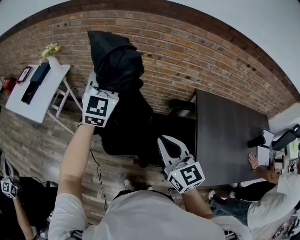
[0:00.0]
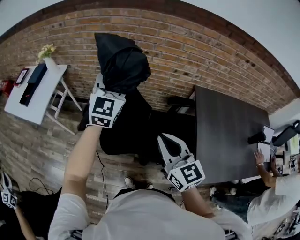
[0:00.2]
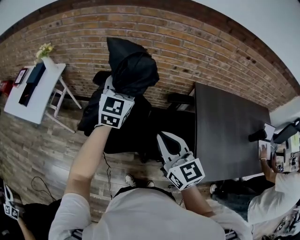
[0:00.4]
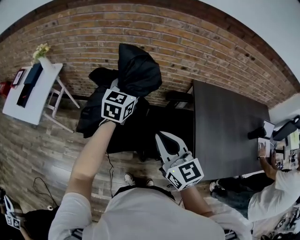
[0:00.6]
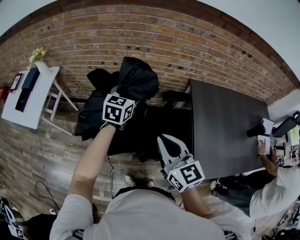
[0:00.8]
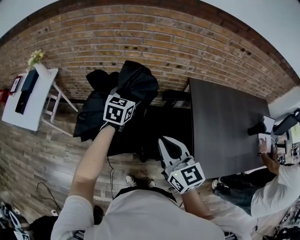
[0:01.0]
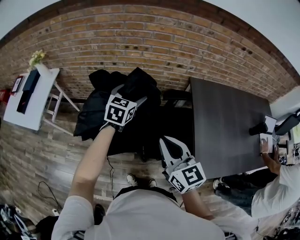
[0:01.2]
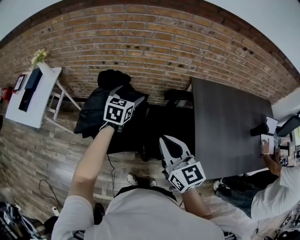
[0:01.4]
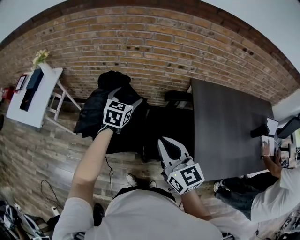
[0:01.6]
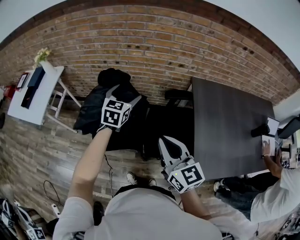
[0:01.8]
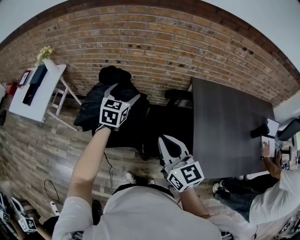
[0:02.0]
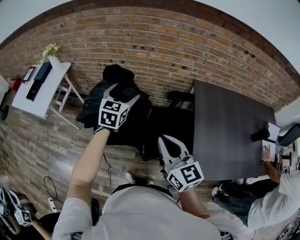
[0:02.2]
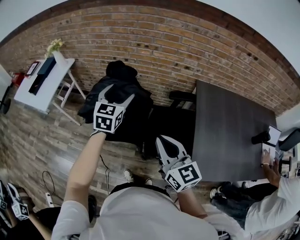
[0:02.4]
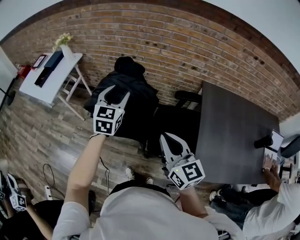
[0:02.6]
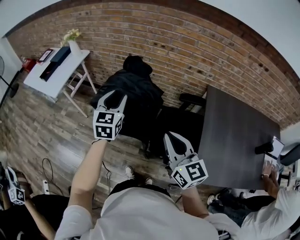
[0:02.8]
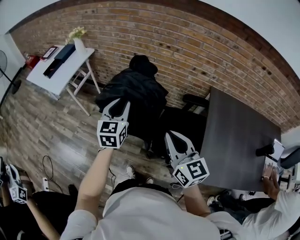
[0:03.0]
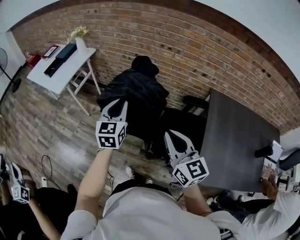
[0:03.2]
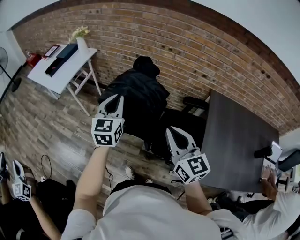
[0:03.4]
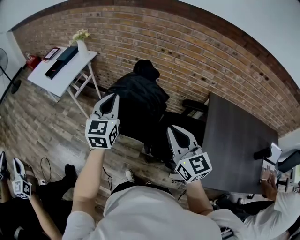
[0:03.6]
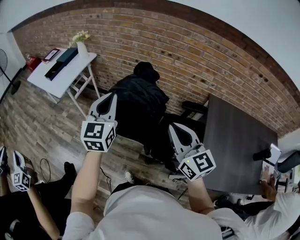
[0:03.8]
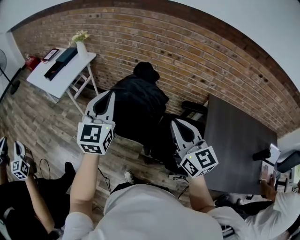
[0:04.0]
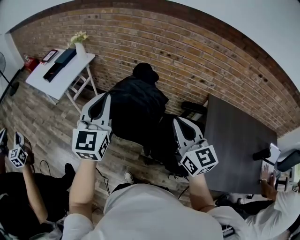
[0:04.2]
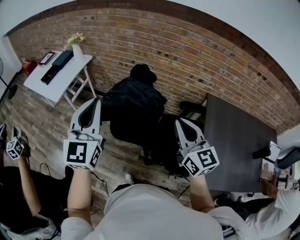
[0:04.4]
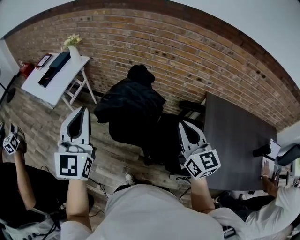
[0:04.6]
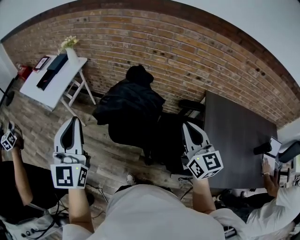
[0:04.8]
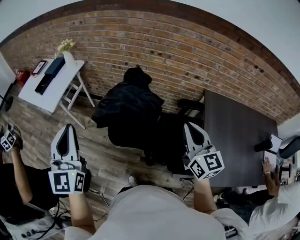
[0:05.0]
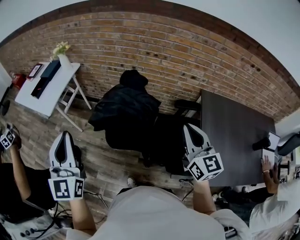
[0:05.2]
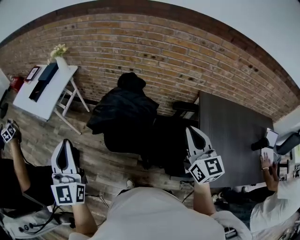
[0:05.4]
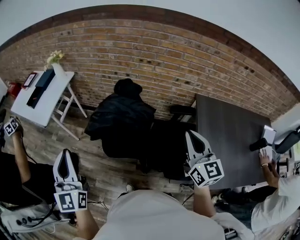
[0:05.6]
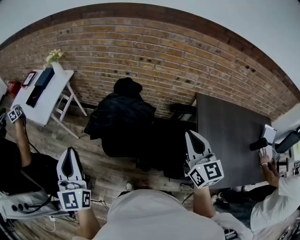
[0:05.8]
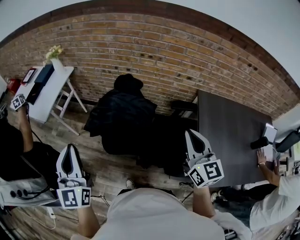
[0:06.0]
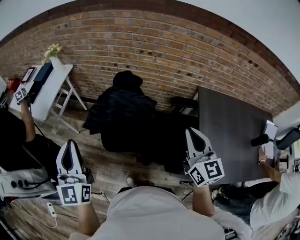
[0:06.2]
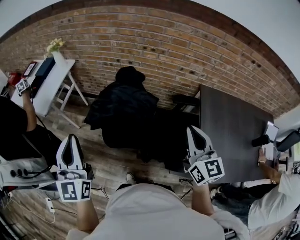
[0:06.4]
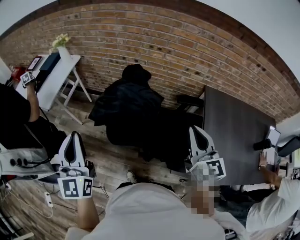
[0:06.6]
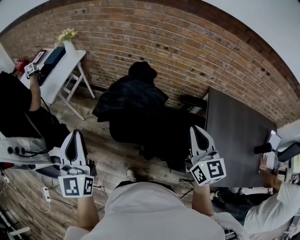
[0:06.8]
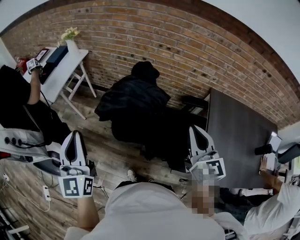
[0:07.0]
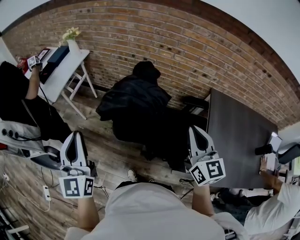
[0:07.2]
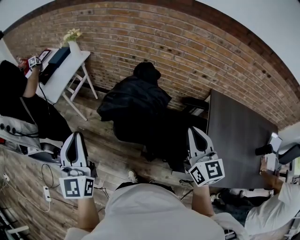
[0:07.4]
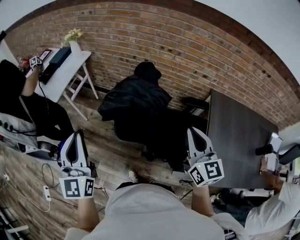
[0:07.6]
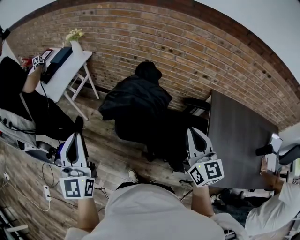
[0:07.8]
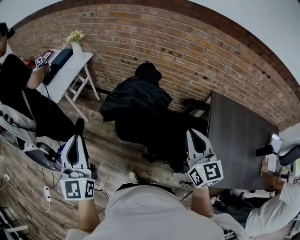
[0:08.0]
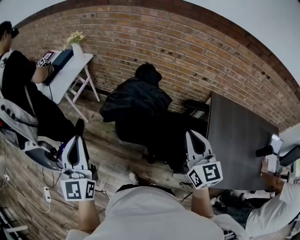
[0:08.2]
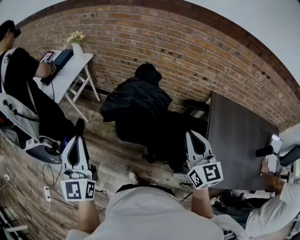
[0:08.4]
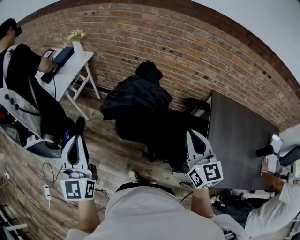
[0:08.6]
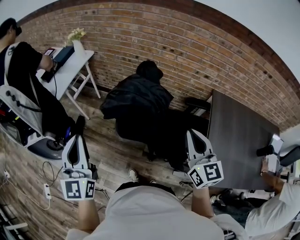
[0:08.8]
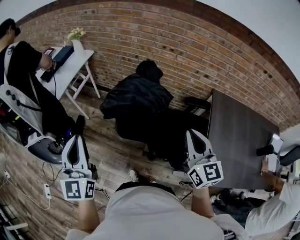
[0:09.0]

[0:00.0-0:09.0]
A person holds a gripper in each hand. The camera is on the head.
0:00.0 to 0:01.6: The right gripper goes approximately 5 cm to the right. The left gripper heads downward and to the right, covering approximately 25 cm, tilts its fingers about 30 degrees downward, and opens its fingers.
0:01.6 to 0:03.0: The right gripper goes approximately 5 cm backward; the left gripper travels backward and to the left by about 20 cm, swivels approximately 30 degrees, and closes its fingers.
0:03.0 to 0:04.4: The right gripper is displaced upward and forward by some 10 cm, while the left gripper travels upward and to the left by about 20 cm, and changes its angle by approximately 20 degrees.
0:04.4 to 0:06.0: The left gripper heads to the left and downward, covering roughly 10 cm; the right gripper moves to the right, some 5 cm.
0:06.0 to 0:07.6: The right gripper shifts some 5 cm to the left.
0:07.6 to 0:09.0: The grippers make only small movements.

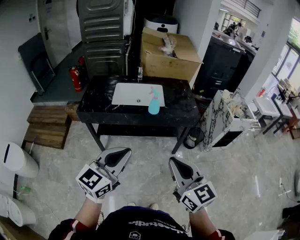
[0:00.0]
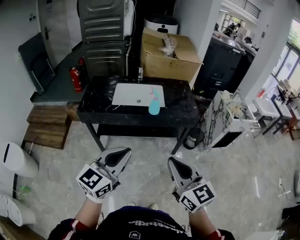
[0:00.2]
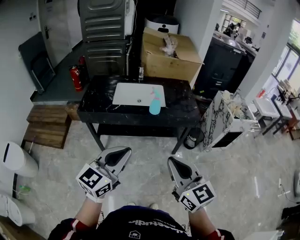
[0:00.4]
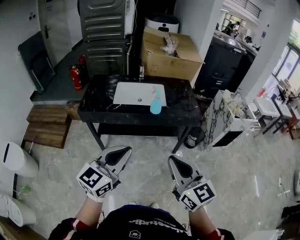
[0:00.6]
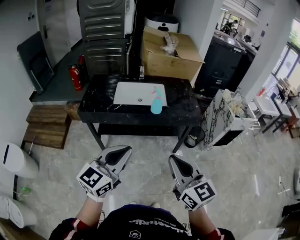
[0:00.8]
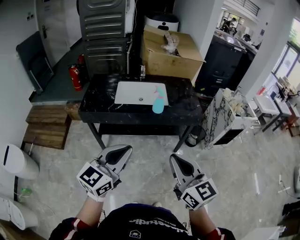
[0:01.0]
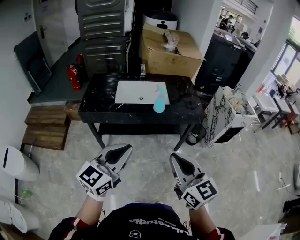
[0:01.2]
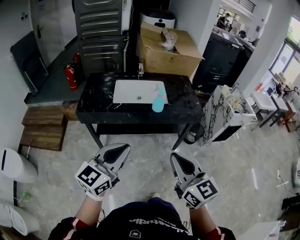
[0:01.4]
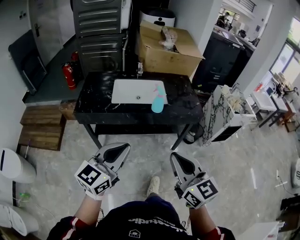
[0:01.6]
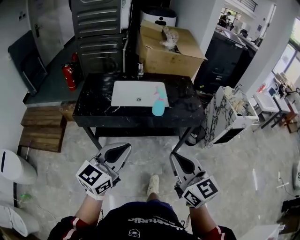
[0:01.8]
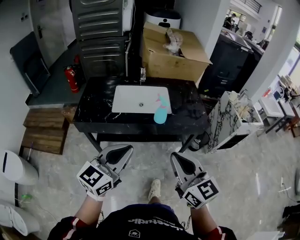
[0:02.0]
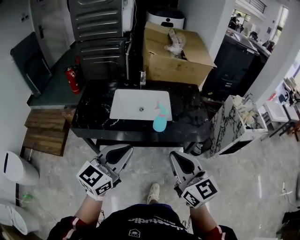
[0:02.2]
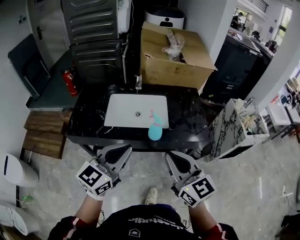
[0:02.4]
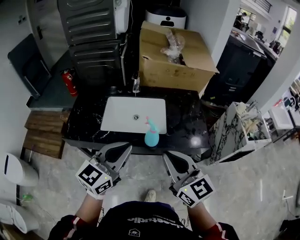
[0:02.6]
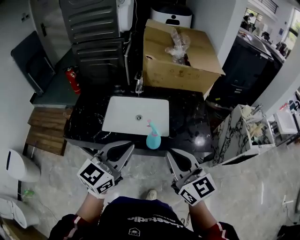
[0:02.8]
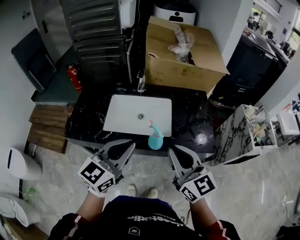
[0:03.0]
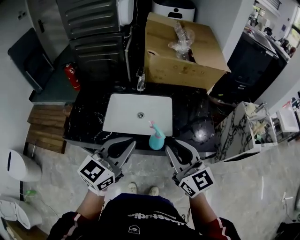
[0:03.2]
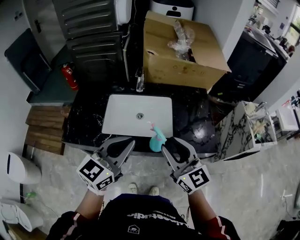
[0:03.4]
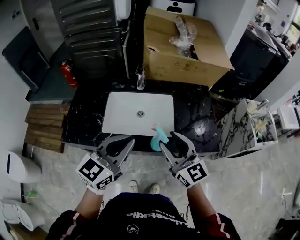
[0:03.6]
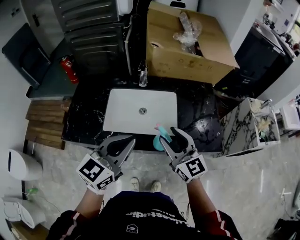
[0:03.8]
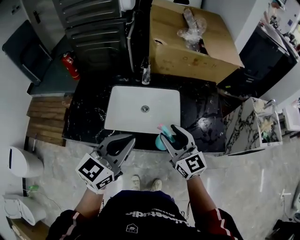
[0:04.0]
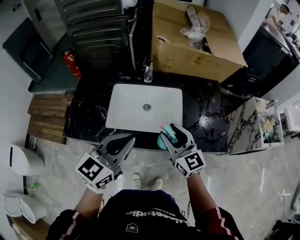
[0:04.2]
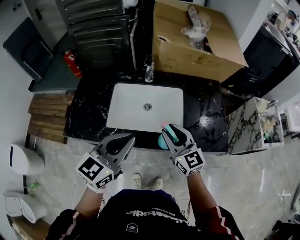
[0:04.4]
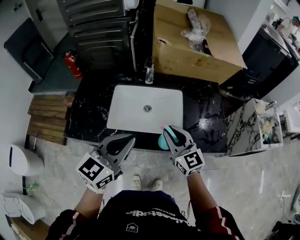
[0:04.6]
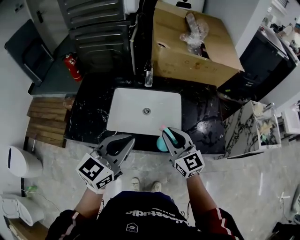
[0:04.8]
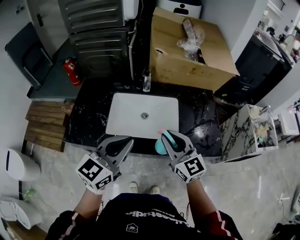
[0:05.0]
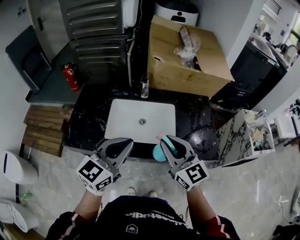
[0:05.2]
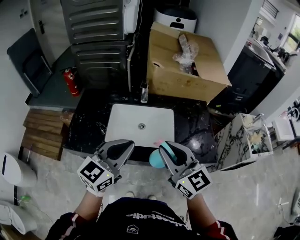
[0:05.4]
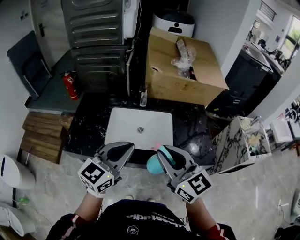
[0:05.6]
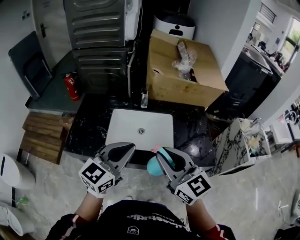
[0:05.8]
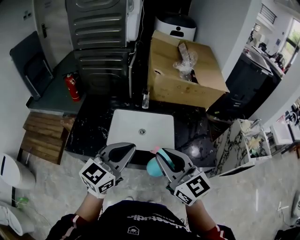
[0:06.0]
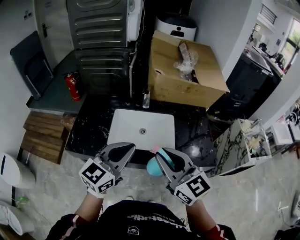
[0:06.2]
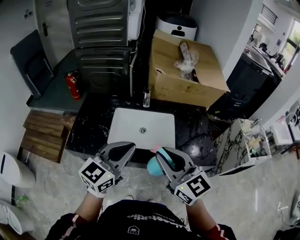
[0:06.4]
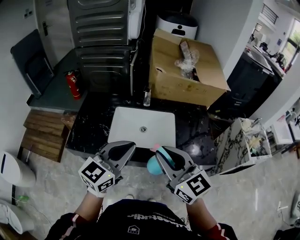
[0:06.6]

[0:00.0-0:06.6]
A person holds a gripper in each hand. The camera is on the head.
0:00.0 to 0:01.6: The left gripper moves to the left and forward, some 10 cm. The right gripper heads to the left, covering about 5 cm.
0:01.6 to 0:03.2: The grippers both shift forward by roughly 35 cm.
0:03.2 to 0:05.0: The left gripper is displaced to the left by approximately 5 cm. Meanwhile the right gripper moves forward, to the left and downward, approximately 10 cm, and opens, then closes again.
0:05.0 to 0:06.6: The right gripper moves upward and backward, approximately 15 cm.

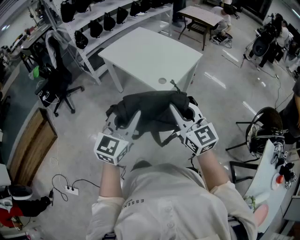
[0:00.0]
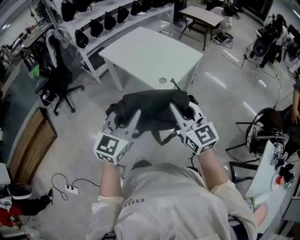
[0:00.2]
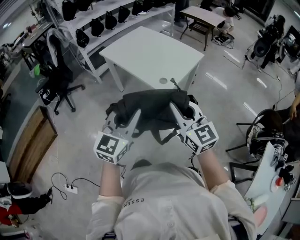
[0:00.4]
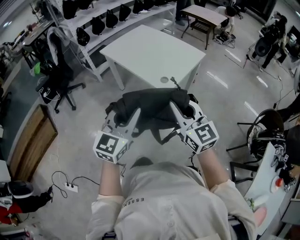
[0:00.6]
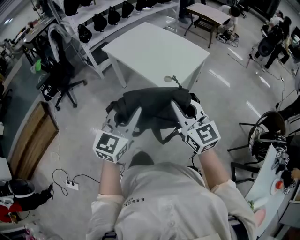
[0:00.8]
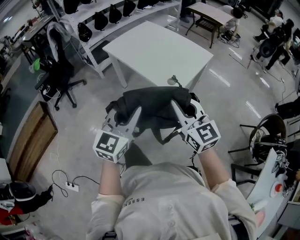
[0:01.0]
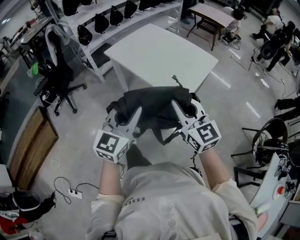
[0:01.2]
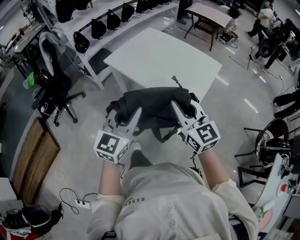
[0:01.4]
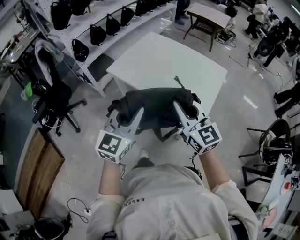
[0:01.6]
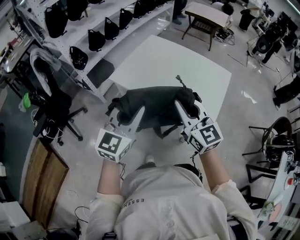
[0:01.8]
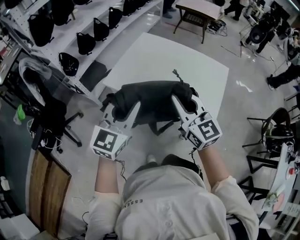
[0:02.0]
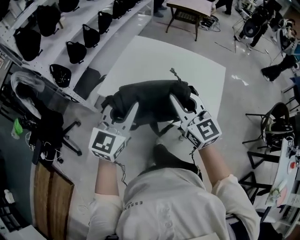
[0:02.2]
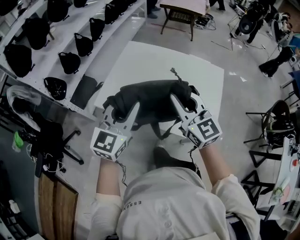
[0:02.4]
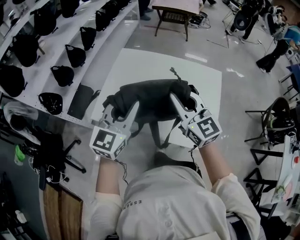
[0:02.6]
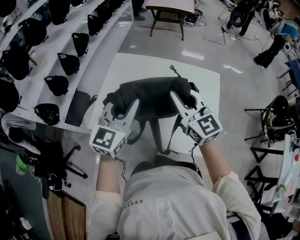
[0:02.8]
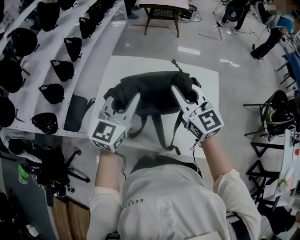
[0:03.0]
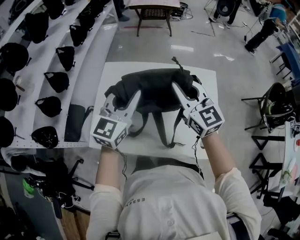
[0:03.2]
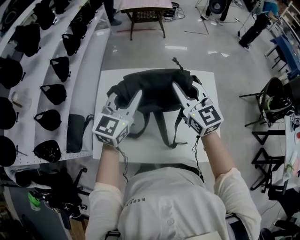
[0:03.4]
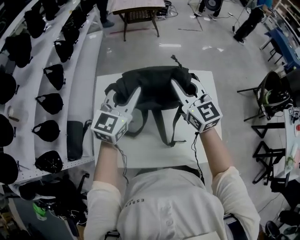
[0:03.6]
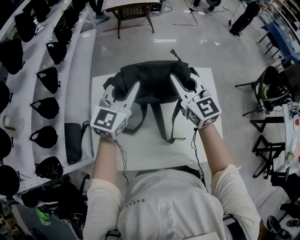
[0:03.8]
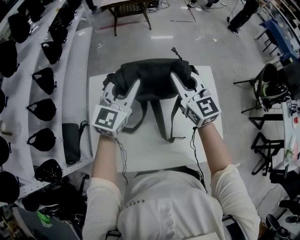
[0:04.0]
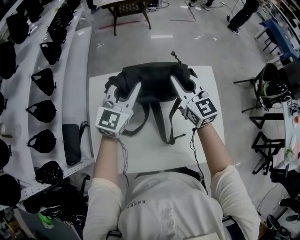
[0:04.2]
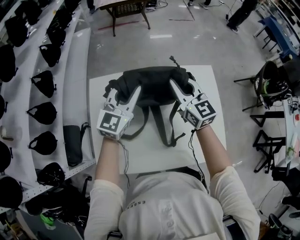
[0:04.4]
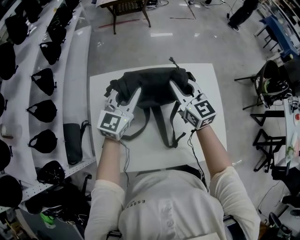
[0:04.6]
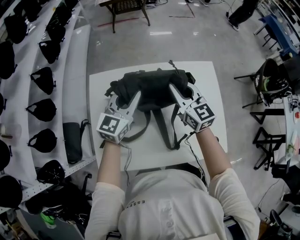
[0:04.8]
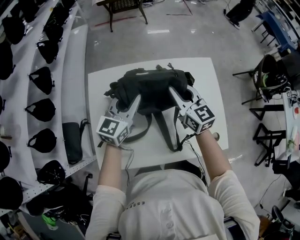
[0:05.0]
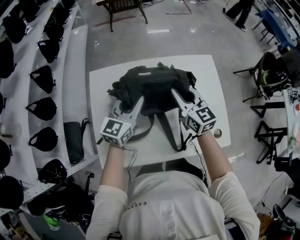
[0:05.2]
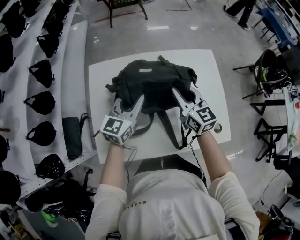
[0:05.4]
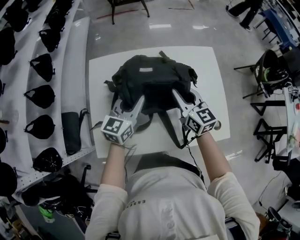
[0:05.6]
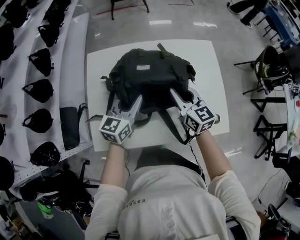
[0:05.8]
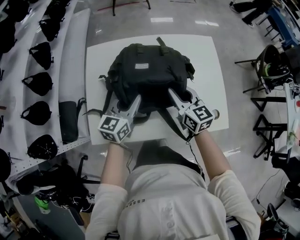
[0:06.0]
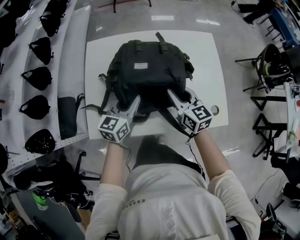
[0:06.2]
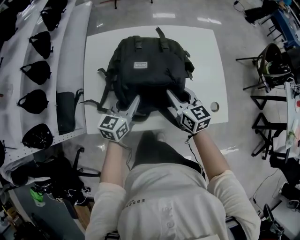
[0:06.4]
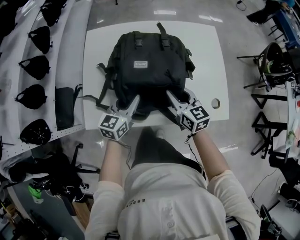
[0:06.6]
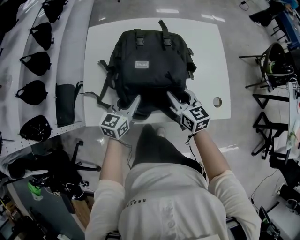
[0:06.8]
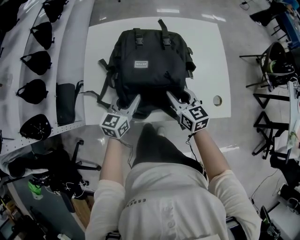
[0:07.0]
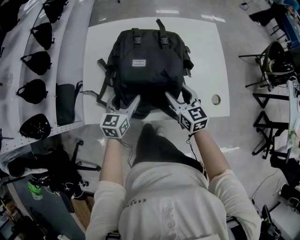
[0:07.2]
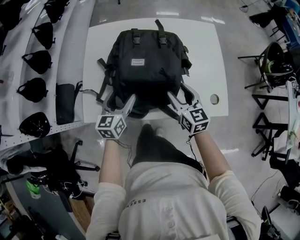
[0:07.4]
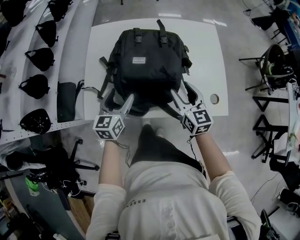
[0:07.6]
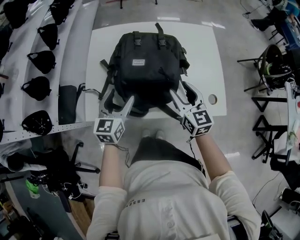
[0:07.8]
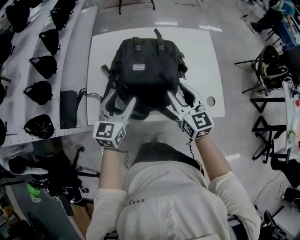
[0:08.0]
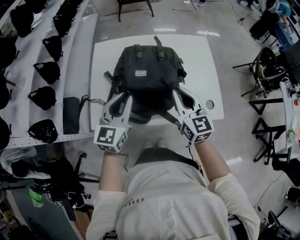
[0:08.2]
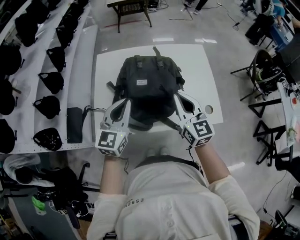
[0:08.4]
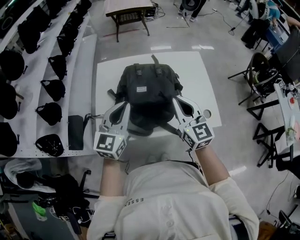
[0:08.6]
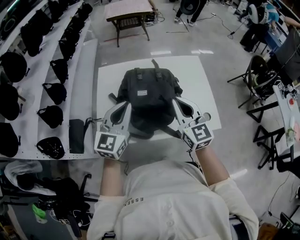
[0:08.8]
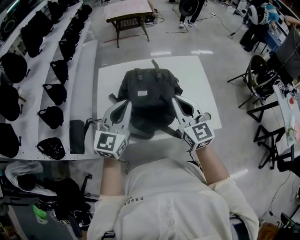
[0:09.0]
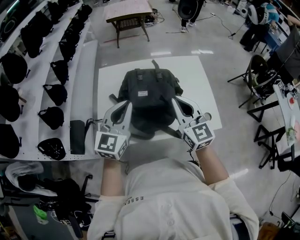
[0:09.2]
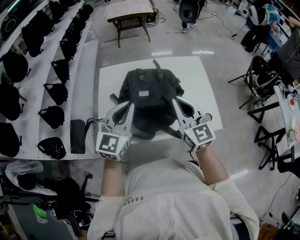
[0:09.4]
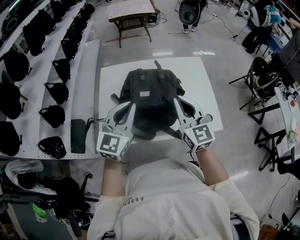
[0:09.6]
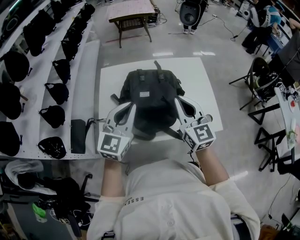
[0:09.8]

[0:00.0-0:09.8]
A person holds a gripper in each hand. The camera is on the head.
0:00.0 to 0:01.4: The two grippers go roughly 25 cm forward and to the left.
0:01.4 to 0:02.8: The two grippers go approximately 40 cm forward. The right gripper turns by some 20 degrees. Meanwhile the left gripper changes its angle by approximately 20 degrees.
0:02.8 to 0:04.2: The grippers both shift forward by some 25 cm. The right gripper changes its angle by approximately 20 degrees, while the left gripper changes its angle by roughly 20 degrees.
0:04.2 to 0:05.6: The two grippers go roughly 15 cm backward and downward. The left gripper changes its angle by roughly 20 degrees.
0:05.6 to 0:07.0: The grippers both shift backward and downward by about 15 cm.
0:07.0 to 0:08.4: The grippers both shift upward by some 20 cm. The left gripper rotates roughly 20 degrees, and closes up; the right gripper changes its angle by some 20 degrees, and closes its fingers.
0:08.4 to 0:09.8: The two grippers go about 5 cm upward.
